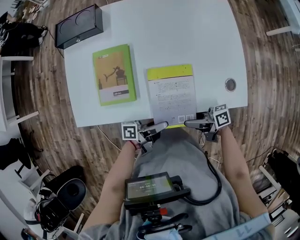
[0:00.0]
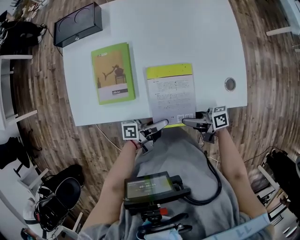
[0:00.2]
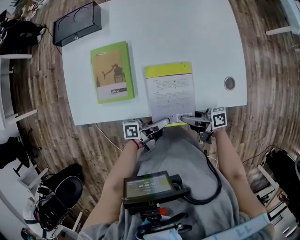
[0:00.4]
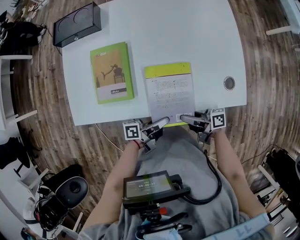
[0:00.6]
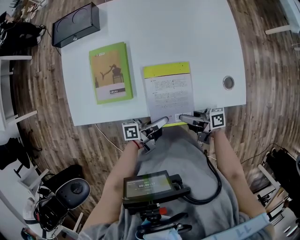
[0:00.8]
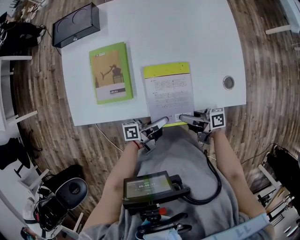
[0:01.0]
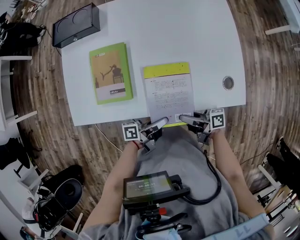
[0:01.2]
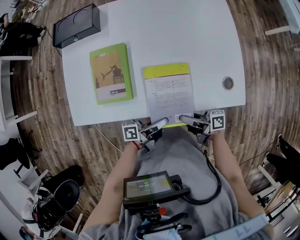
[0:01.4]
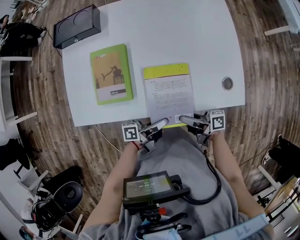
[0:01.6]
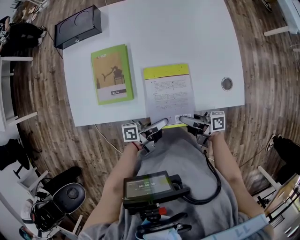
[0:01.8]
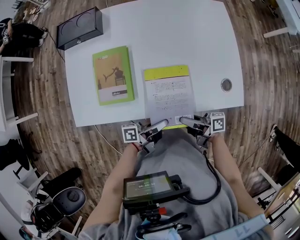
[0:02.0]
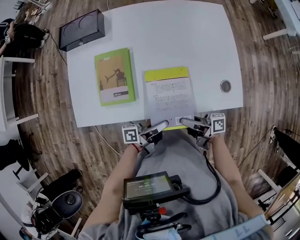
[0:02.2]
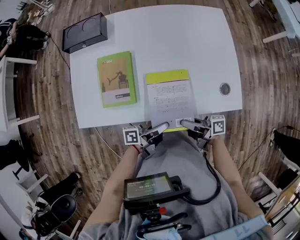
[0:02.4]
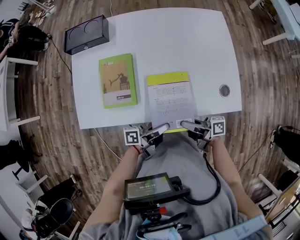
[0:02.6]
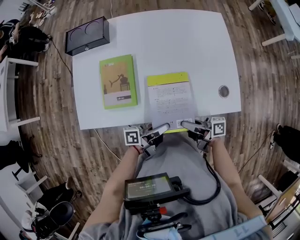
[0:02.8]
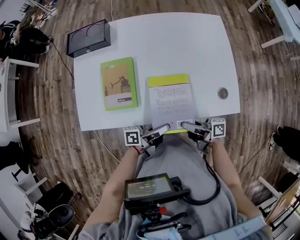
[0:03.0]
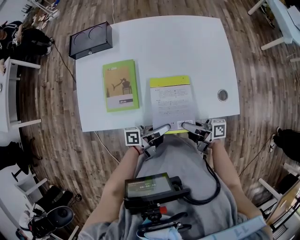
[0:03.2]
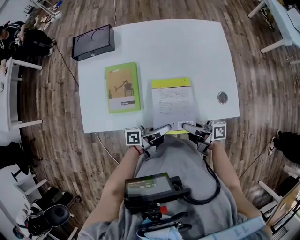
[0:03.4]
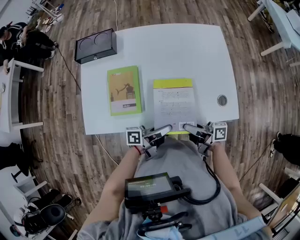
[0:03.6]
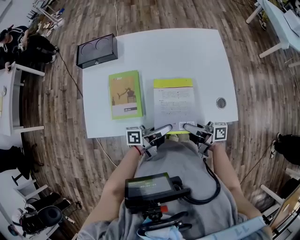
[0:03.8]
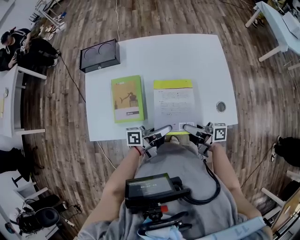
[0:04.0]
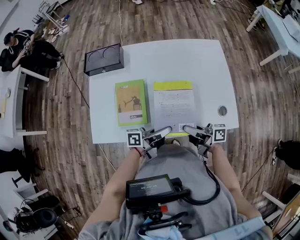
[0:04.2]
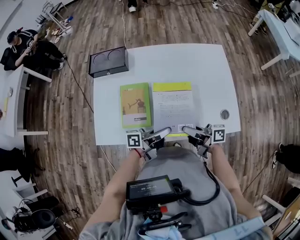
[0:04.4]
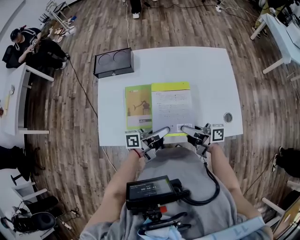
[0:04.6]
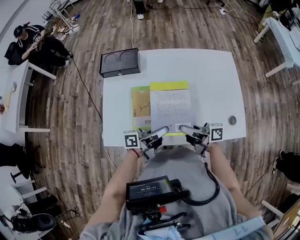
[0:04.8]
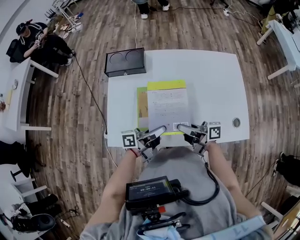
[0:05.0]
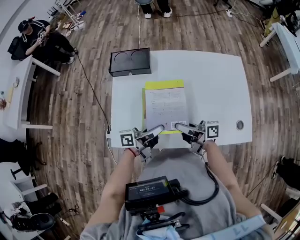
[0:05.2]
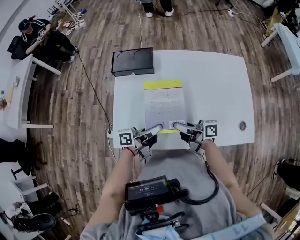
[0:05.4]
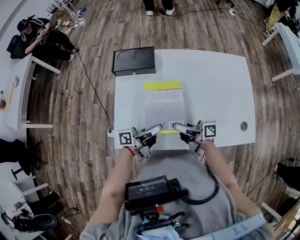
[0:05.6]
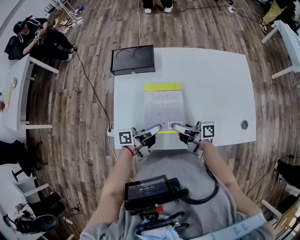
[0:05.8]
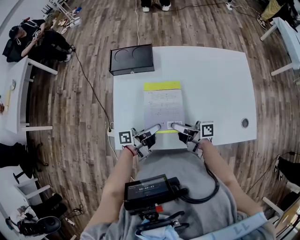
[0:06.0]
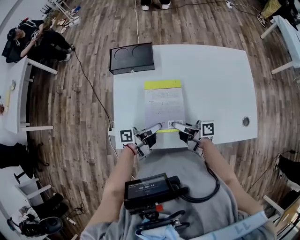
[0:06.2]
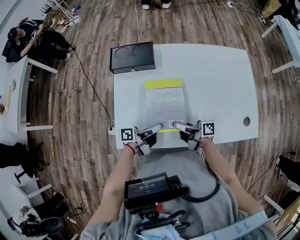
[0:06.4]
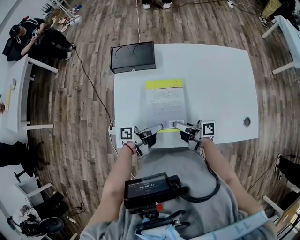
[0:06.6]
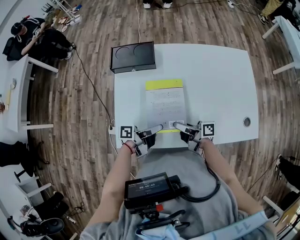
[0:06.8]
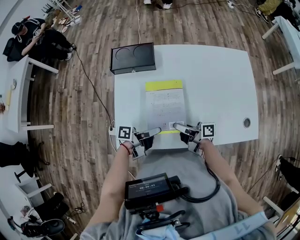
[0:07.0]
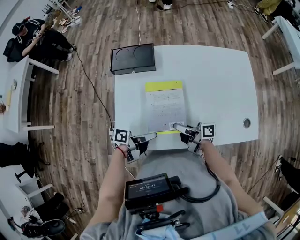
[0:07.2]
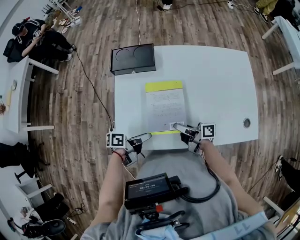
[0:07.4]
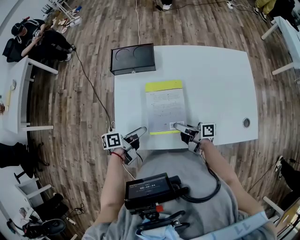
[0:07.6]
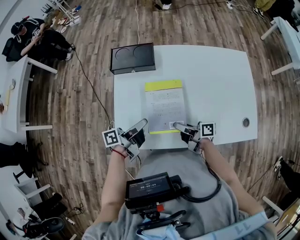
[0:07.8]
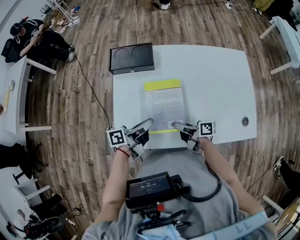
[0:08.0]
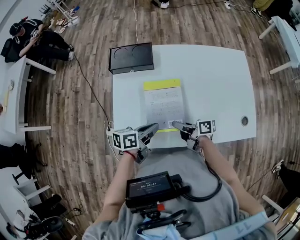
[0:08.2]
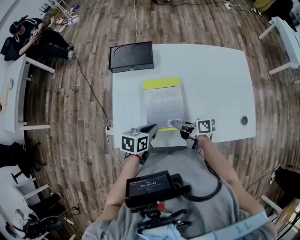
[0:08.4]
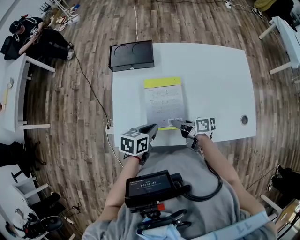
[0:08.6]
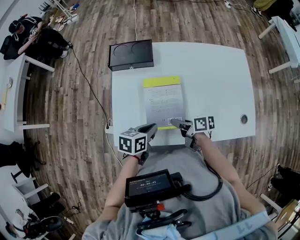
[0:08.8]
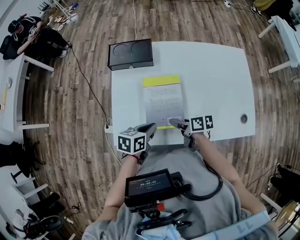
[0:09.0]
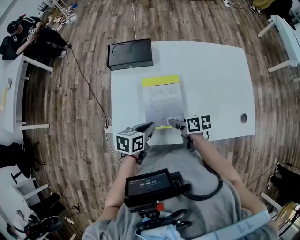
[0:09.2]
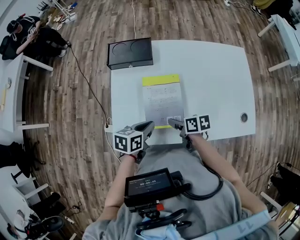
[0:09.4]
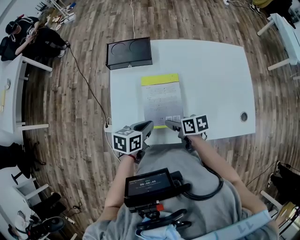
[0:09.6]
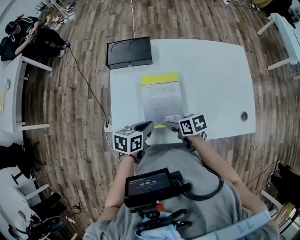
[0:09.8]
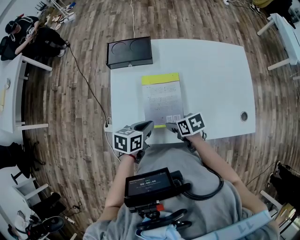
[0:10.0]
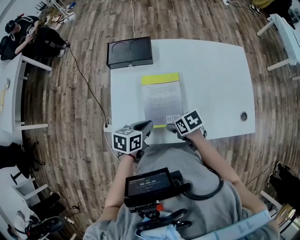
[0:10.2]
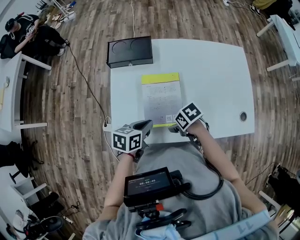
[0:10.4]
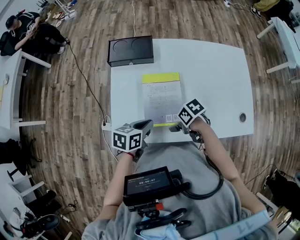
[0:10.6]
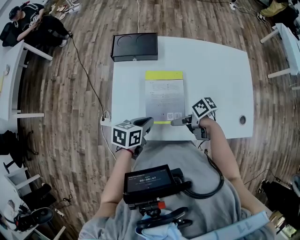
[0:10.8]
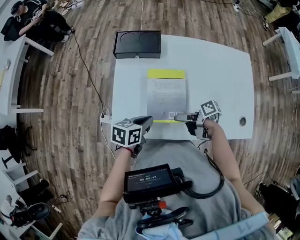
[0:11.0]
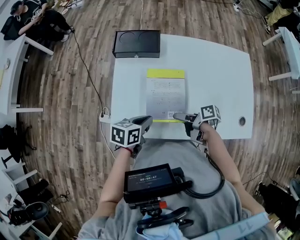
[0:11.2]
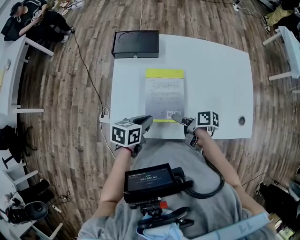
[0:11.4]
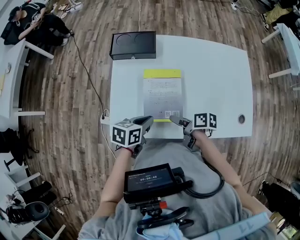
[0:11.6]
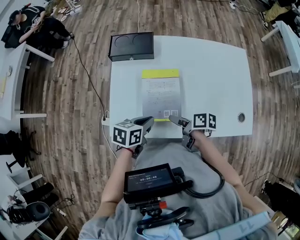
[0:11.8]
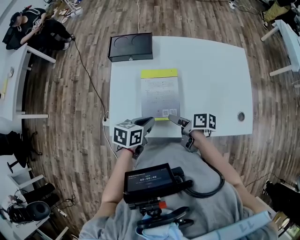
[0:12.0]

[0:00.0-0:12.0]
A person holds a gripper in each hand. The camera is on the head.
0:00.0 to 0:01.6: The left gripper closes up, while the right gripper closes its fingers.
0:01.6 to 0:03.0: The grippers make only small movements.
0:03.0 to 0:04.4: The two grippers go approximately 10 cm upward and forward.
0:04.4 to 0:06.0: Both grippers move to the left, roughly 15 cm.
0:06.0 to 0:07.6: The left gripper changes place by some 10 cm, turns by roughly 20 degrees, and opens.
0:07.6 to 0:09.0: The left gripper goes roughly 5 cm to the right, swivels some 40 degrees, and closes, while the right gripper rotates approximately 30 degrees.
0:09.0 to 0:10.4: The right gripper rotates about 40 degrees, and opens.
0:10.4 to 0:12.0: The right gripper changes its angle by approximately 50 degrees.

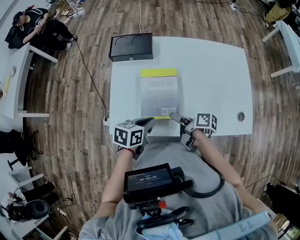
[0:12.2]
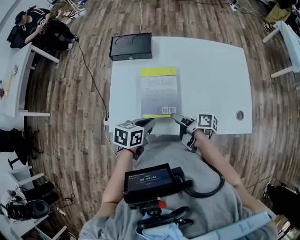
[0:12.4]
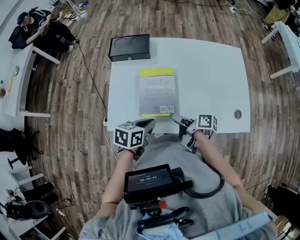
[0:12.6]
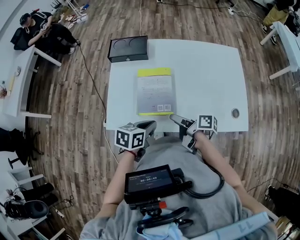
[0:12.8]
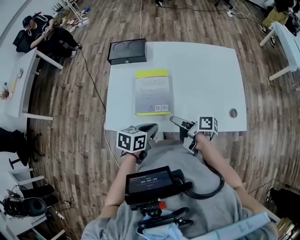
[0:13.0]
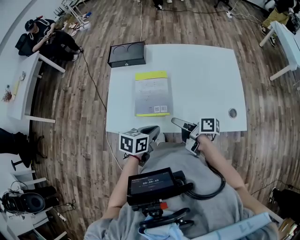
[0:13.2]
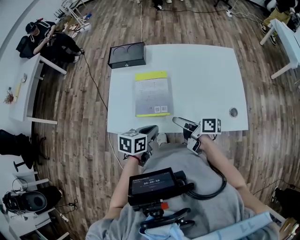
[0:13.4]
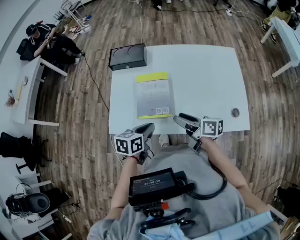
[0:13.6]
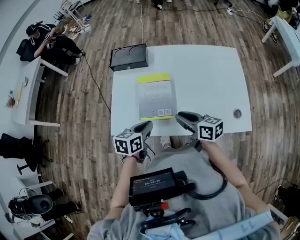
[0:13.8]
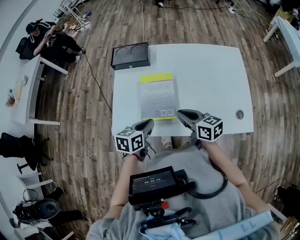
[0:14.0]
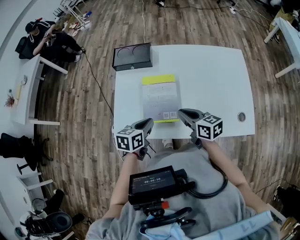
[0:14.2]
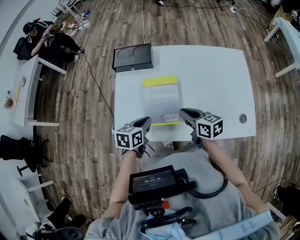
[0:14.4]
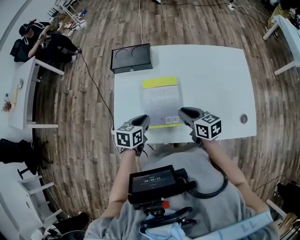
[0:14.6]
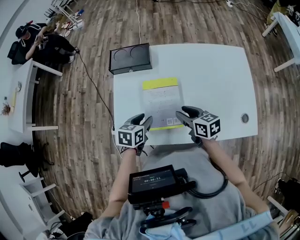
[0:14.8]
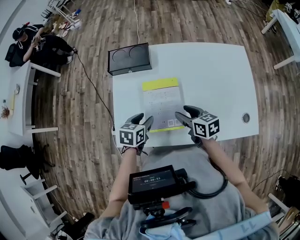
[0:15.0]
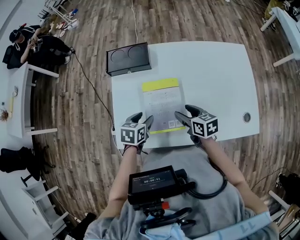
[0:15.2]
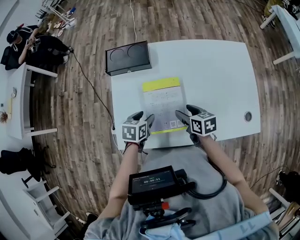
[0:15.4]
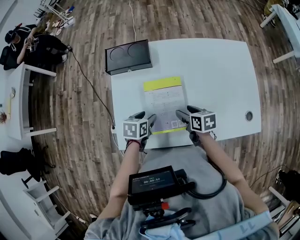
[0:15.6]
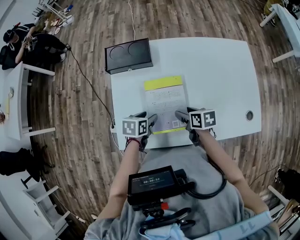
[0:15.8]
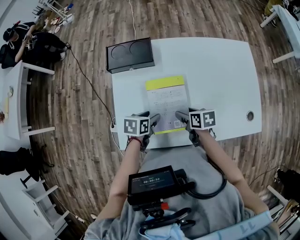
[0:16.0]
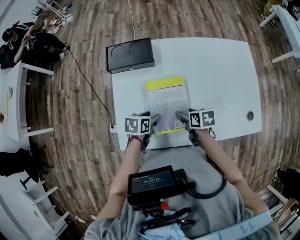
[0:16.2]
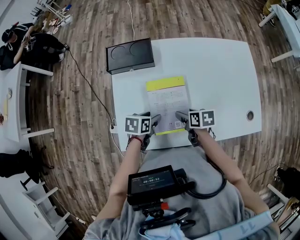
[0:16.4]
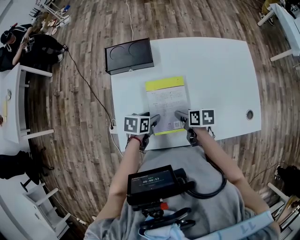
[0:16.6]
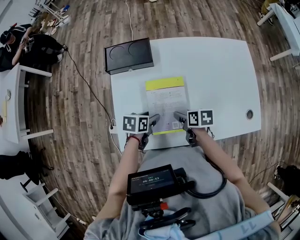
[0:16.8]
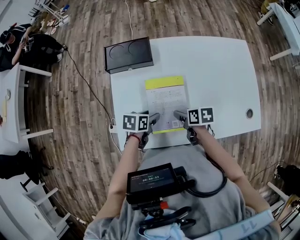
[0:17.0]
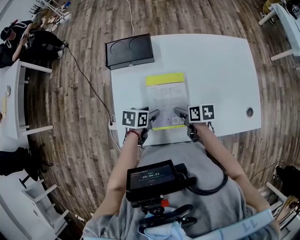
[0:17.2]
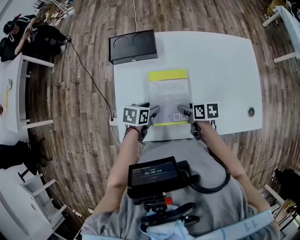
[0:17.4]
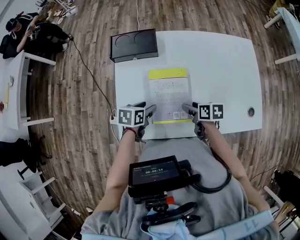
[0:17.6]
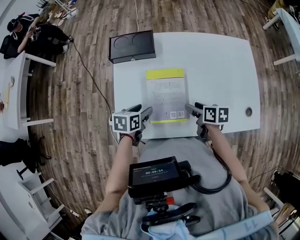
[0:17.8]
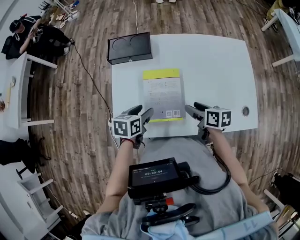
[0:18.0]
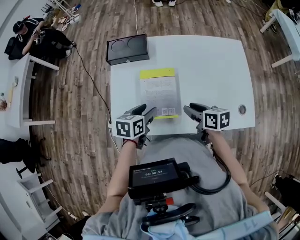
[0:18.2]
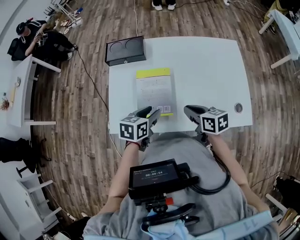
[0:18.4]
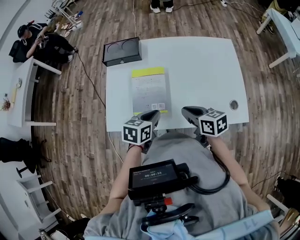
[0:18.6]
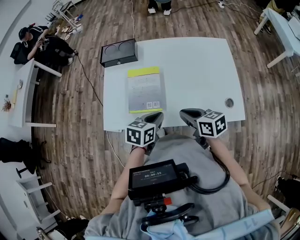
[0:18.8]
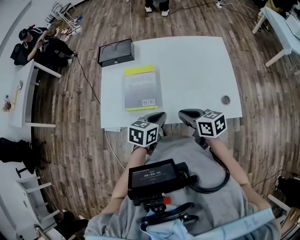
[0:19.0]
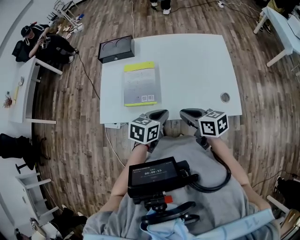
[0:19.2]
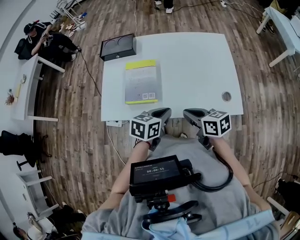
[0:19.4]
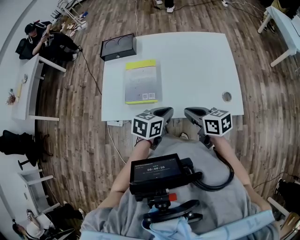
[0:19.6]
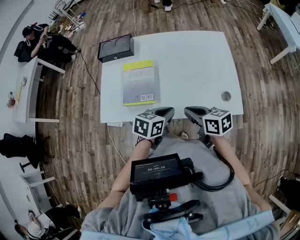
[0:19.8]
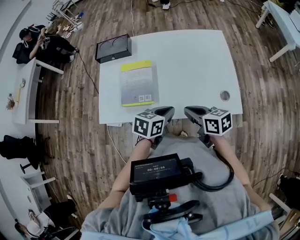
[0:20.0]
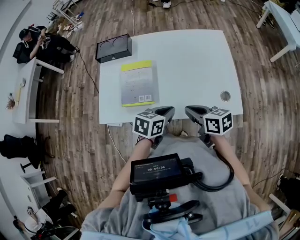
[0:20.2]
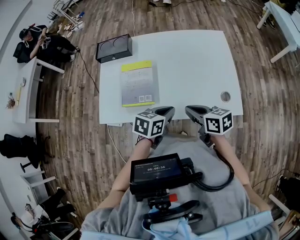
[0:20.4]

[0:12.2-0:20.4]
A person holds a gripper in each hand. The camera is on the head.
0:12.2 to 0:13.8: The right gripper is displaced upward by some 10 cm, rotates around the line of its fingers by about 40 degrees, counterclockwise from behind, and closes.
0:13.8 to 0:15.4: The left gripper moves forward, downward and to the left, some 15 cm, and opens; the right gripper goes about 15 cm forward and downward, changes its angle by approximately 30 degrees, and opens.
0:15.4 to 0:17.2: The right gripper moves approximately 5 cm, and rotates roughly 20 degrees.
0:17.2 to 0:18.8: The left gripper heads to the right, upward and backward, covering roughly 25 cm, changes its angle by some 20 degrees, and closes. The right gripper heads upward, backward and to the right, covering some 20 cm, changes its angle by approximately 30 degrees, and closes.
0:18.8 to 0:20.4: Both grippers move to the right, roughly 10 cm.

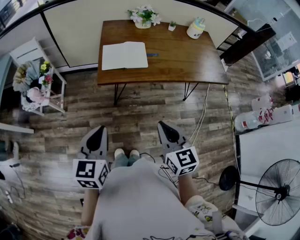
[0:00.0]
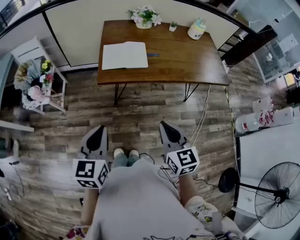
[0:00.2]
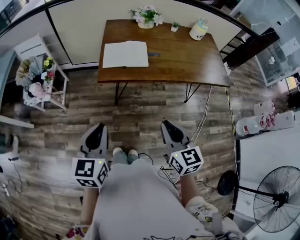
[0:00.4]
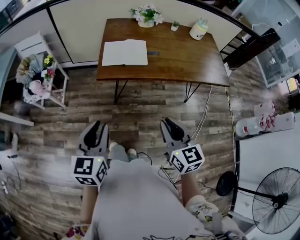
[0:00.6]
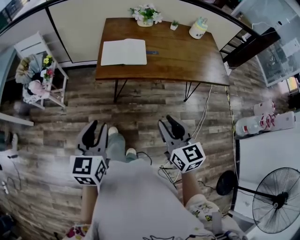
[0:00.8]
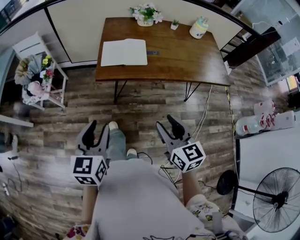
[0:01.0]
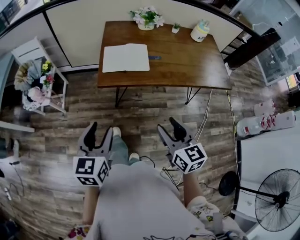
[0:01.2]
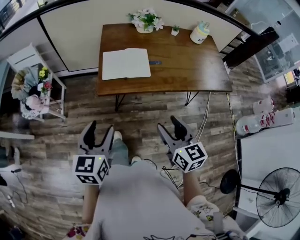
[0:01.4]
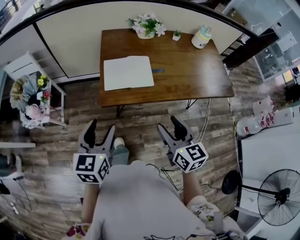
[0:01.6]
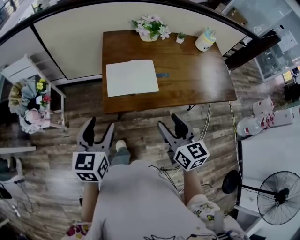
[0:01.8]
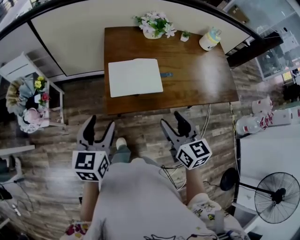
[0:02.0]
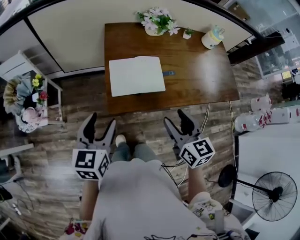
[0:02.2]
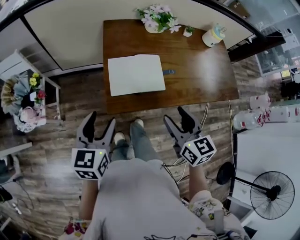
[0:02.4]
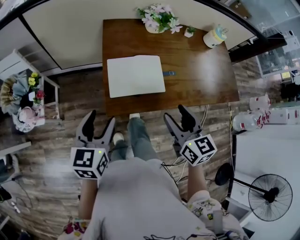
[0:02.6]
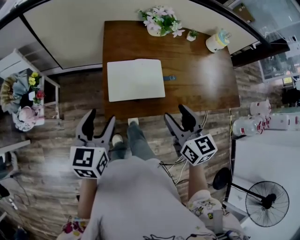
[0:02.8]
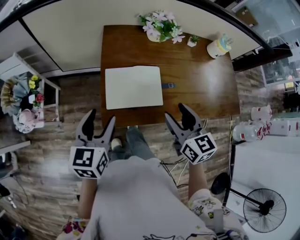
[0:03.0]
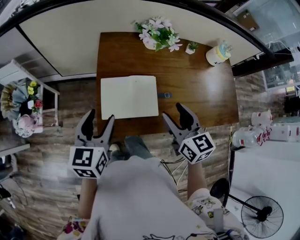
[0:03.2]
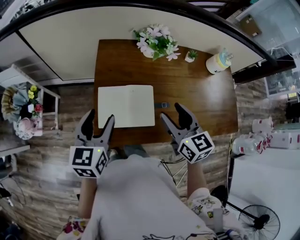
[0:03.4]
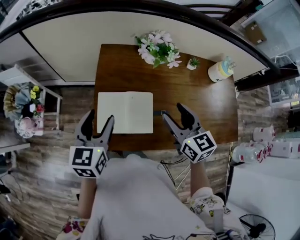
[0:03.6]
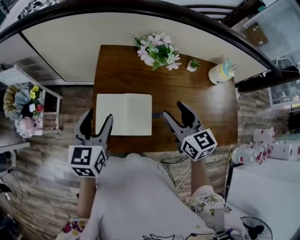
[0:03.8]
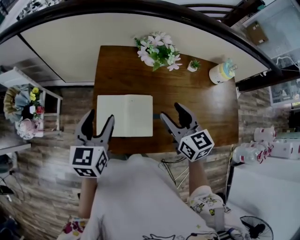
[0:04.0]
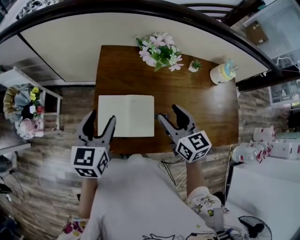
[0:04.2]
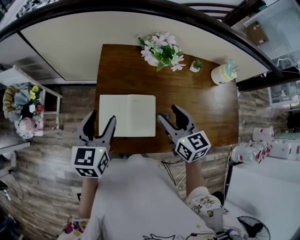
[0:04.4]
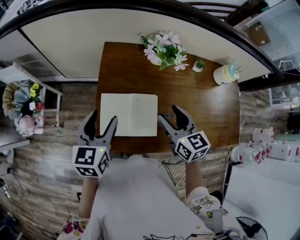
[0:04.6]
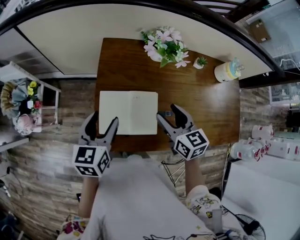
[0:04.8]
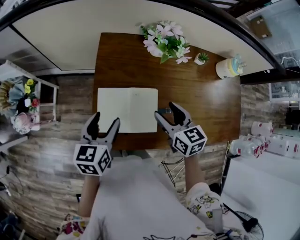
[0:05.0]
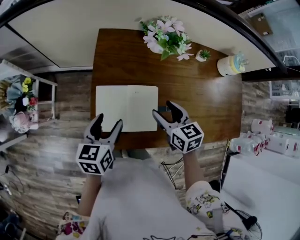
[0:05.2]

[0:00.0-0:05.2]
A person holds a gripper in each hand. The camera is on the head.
0:00.0 to 0:01.8: Both grippers move forward, some 20 cm. The left gripper opens. Meanwhile the right gripper opens up.
0:01.8 to 0:03.4: The grippers both shift forward by roughly 25 cm.
0:03.4 to 0:05.2: The right gripper heads downward and forward, covering roughly 15 cm. Meanwhile the left gripper moves downward, some 10 cm.
